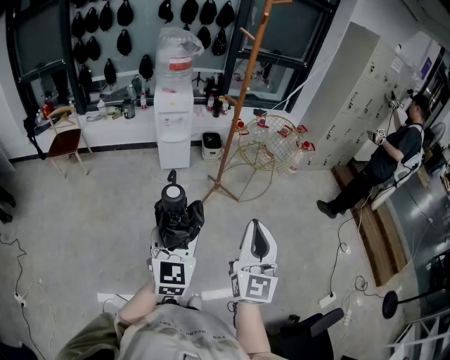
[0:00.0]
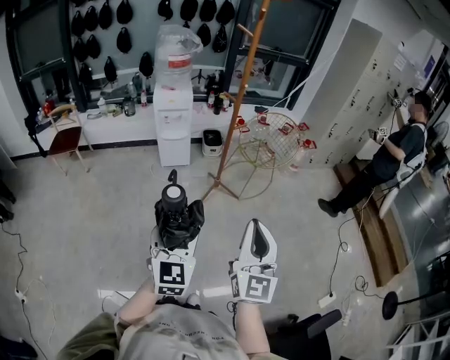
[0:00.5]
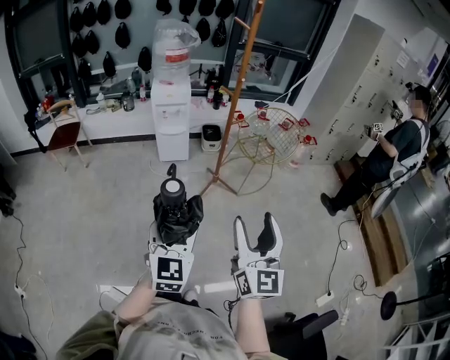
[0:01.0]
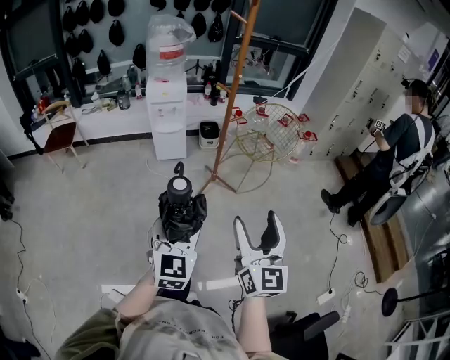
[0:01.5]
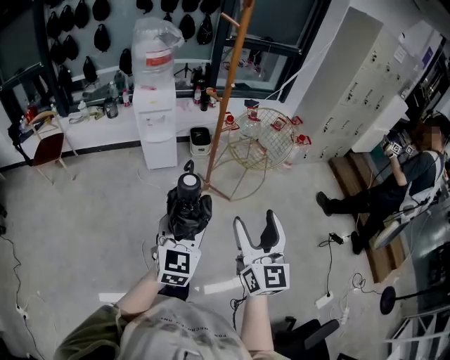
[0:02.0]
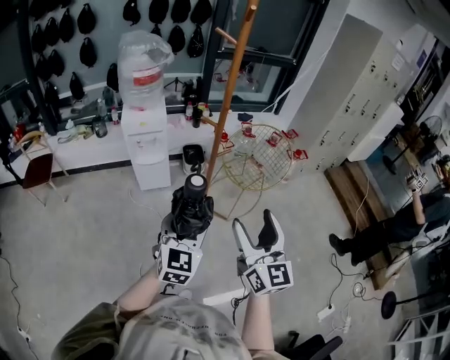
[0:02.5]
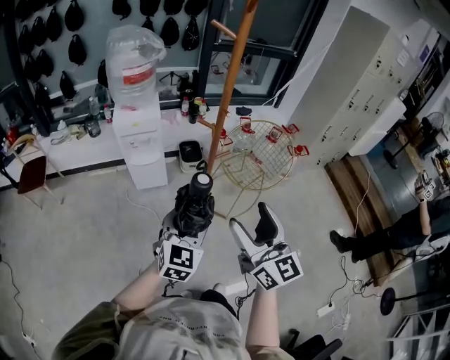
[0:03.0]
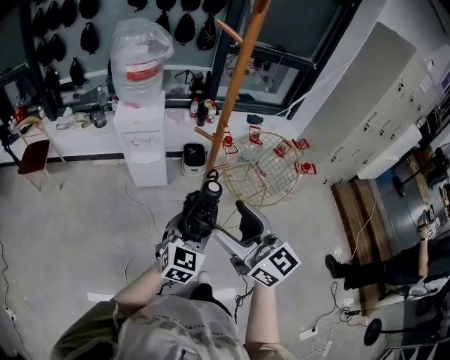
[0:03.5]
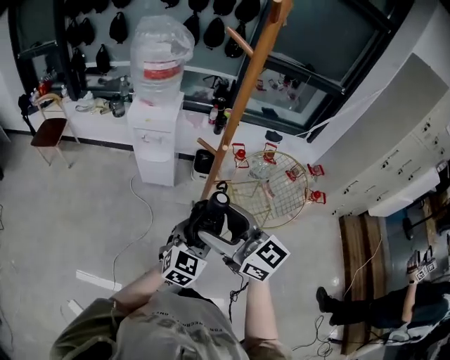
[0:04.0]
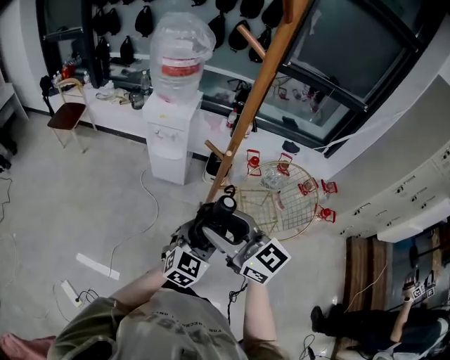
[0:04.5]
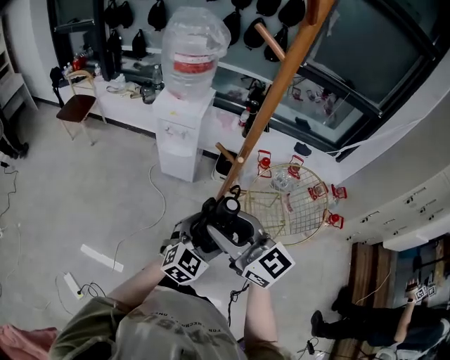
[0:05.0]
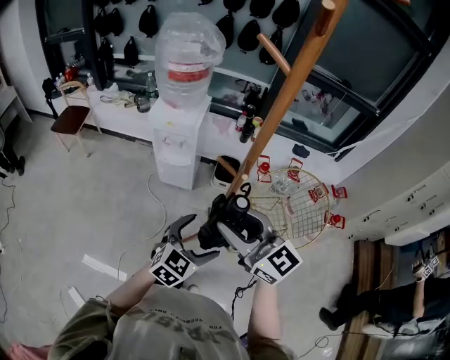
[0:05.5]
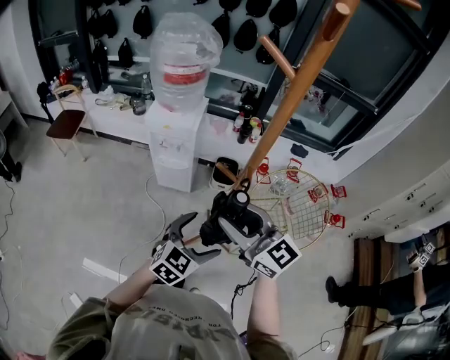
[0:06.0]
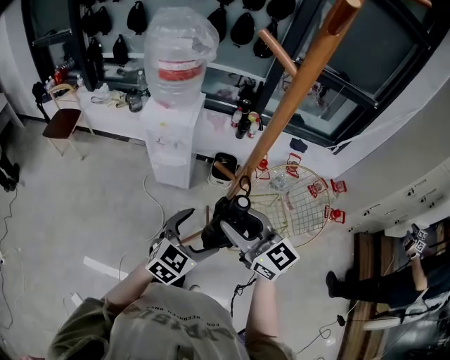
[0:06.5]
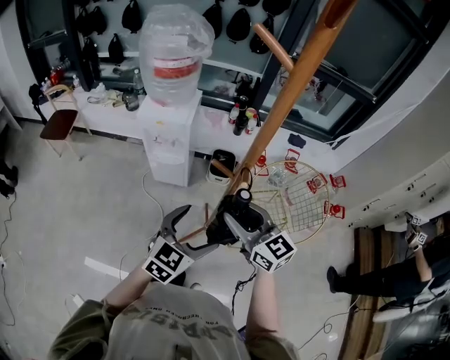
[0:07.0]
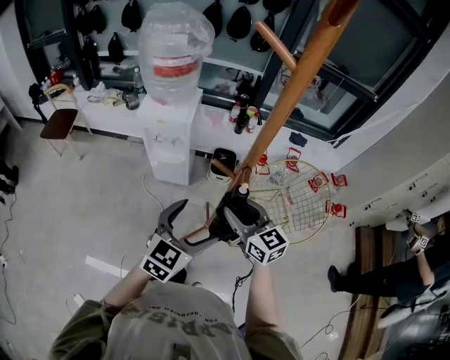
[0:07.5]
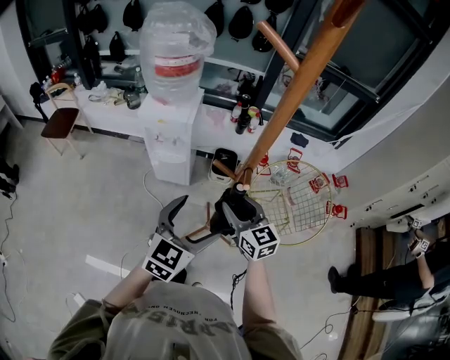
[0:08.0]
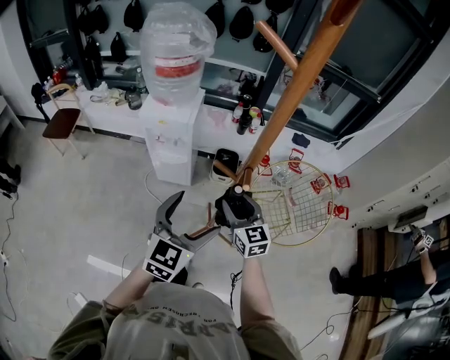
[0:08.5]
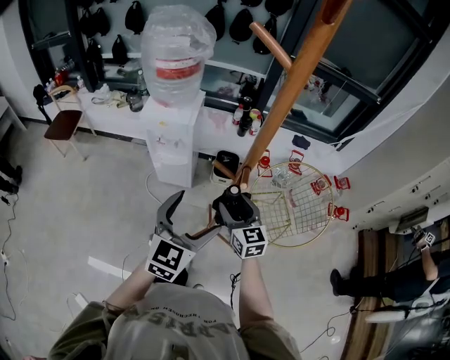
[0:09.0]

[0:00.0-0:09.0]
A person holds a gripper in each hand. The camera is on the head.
0.0 to 2.0 s: The left gripper heads forward and to the right, covering about 15 cm. The right gripper goes about 15 cm forward, and opens.
2.0 to 4.5 s: The left gripper ends up about 40 cm from where it was, while the right gripper changes place by about 35 cm, rotates about 60 degrees, and closes up.
4.5 to 7.0 s: The left gripper goes approximately 10 cm forward and to the left, and opens up. The right gripper moves forward and downward, roughly 15 cm.
7.0 to 9.0 s: The right gripper heads downward and forward, covering some 10 cm. Meanwhile the left gripper heads upward, covering some 5 cm.

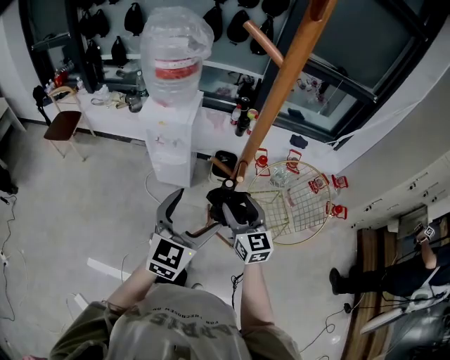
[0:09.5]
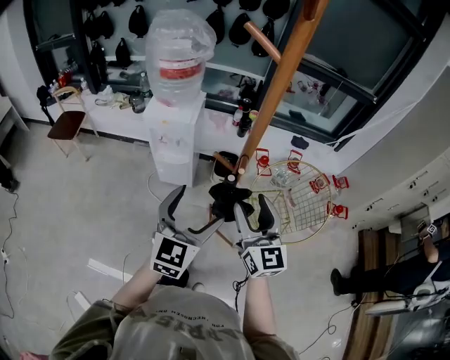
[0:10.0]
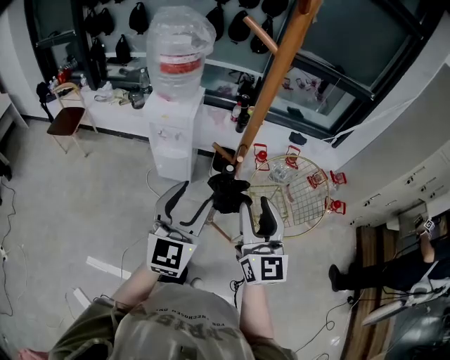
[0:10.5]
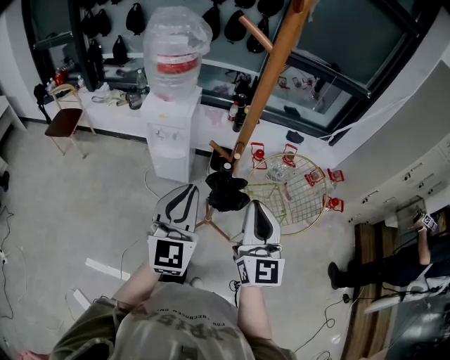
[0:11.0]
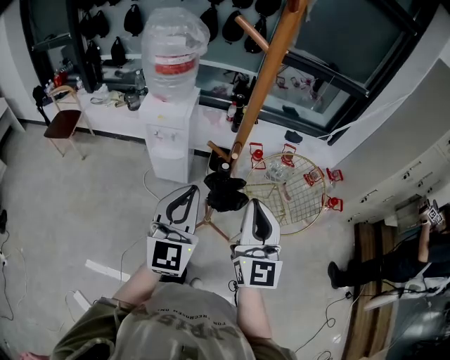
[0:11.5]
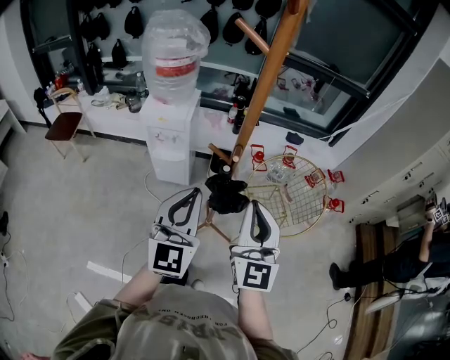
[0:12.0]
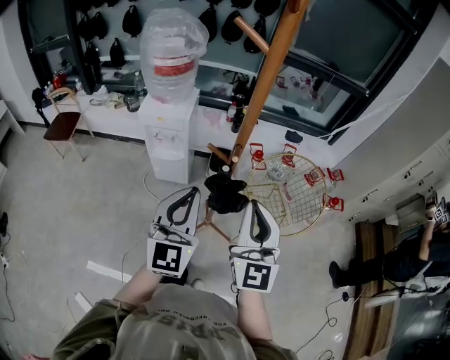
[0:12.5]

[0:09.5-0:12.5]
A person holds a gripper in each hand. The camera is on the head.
9.5 to 11.0 s: The right gripper heads upward and backward, covering roughly 20 cm, changes its angle by approximately 20 degrees, and closes up. The left gripper moves upward, some 5 cm, turns by about 20 degrees, and closes its fingers.
11.0 to 12.5 s: The grippers make only small movements.

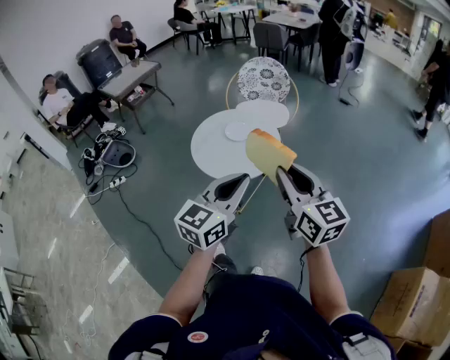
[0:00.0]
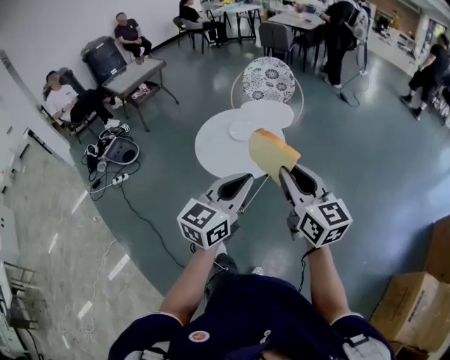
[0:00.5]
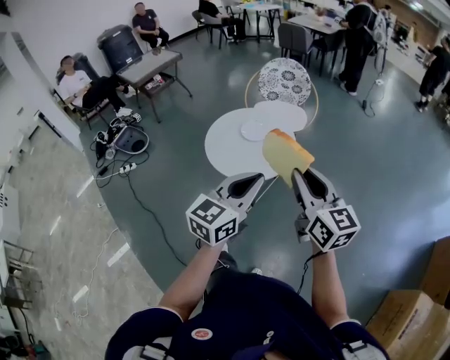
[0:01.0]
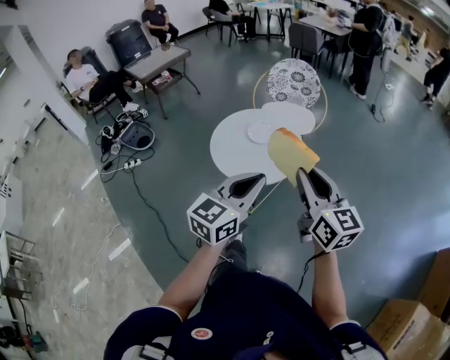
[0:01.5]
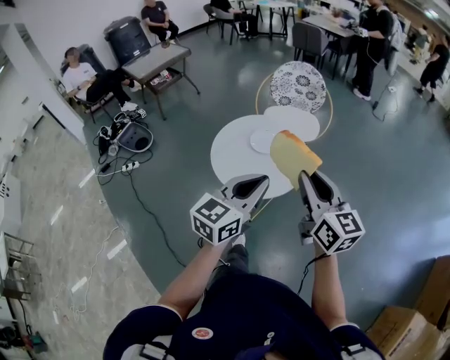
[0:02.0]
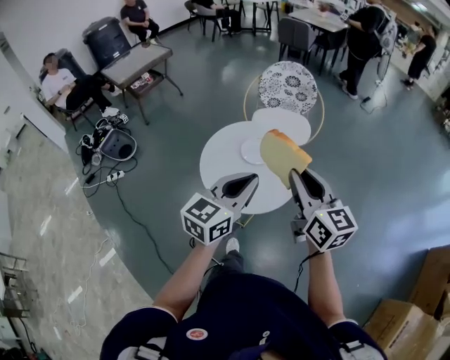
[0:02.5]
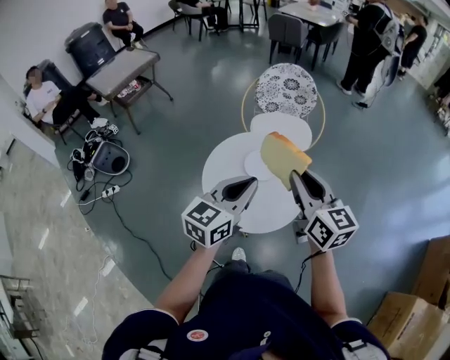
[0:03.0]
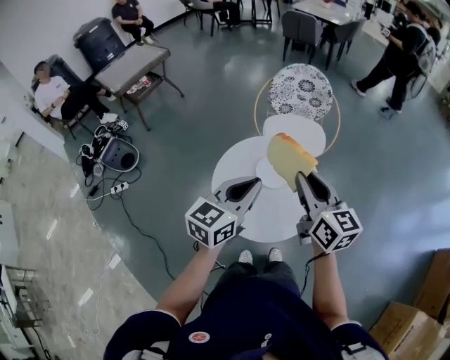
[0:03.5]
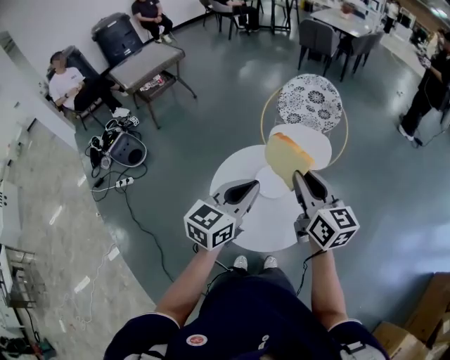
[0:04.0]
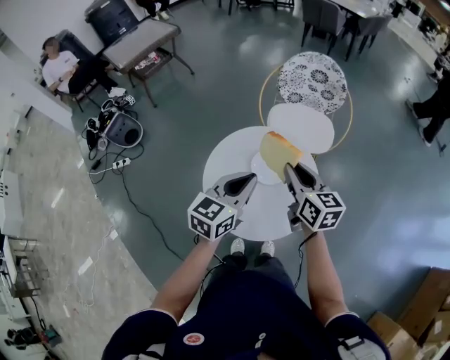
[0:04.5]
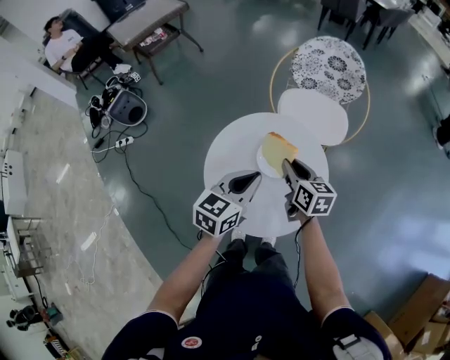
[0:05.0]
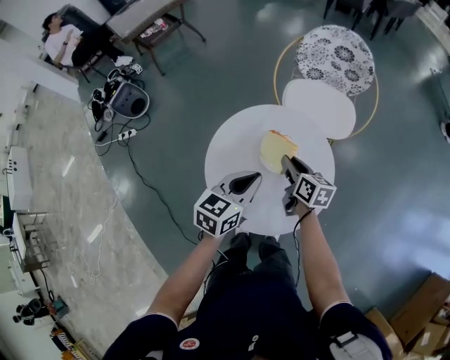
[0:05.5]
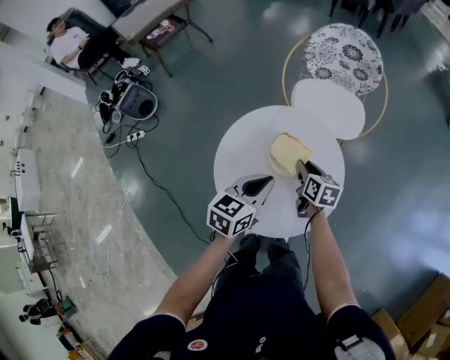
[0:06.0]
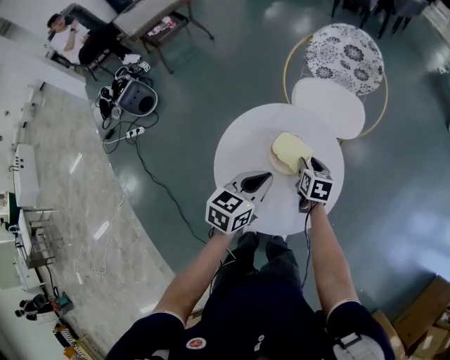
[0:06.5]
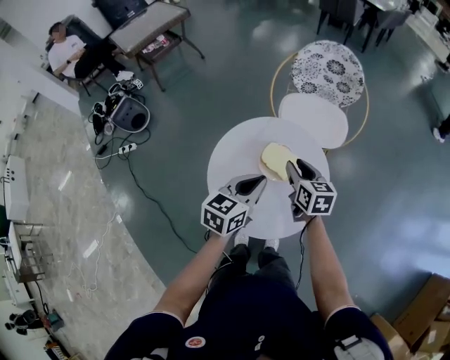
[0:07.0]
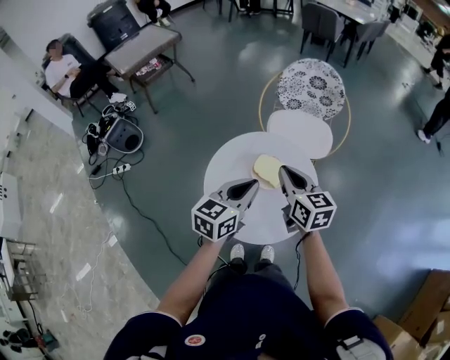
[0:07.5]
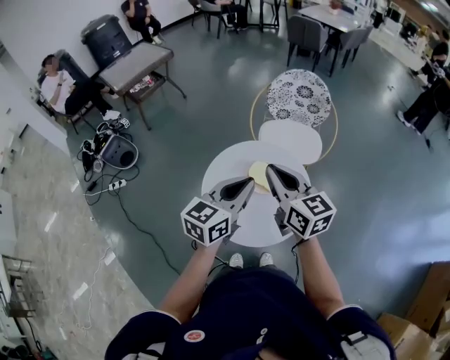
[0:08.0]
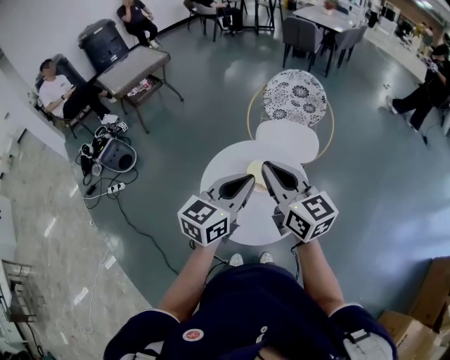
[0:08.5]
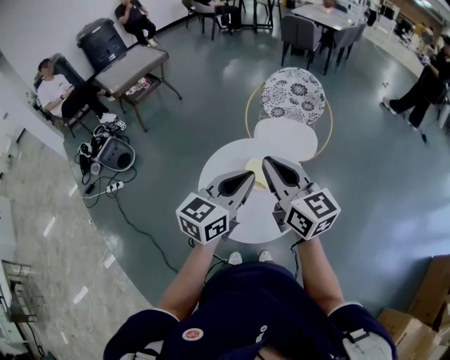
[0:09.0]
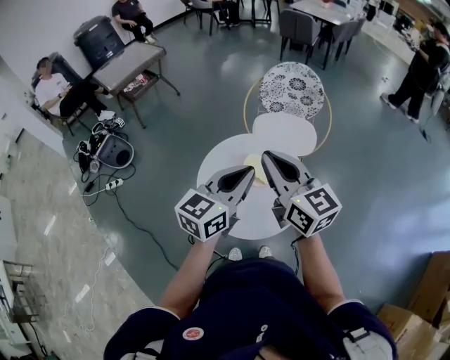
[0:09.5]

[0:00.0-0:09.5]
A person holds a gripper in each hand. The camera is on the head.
0.0 to 2.0 s: Both grippers move forward, roughly 10 cm.
2.0 to 4.0 s: The right gripper travels forward by some 25 cm, while the left gripper shifts roughly 25 cm forward and to the left.
4.0 to 5.5 s: The left gripper travels downward by roughly 15 cm. The right gripper is displaced downward by approximately 30 cm, and swivels roughly 30 degrees.
5.5 to 7.5 s: The right gripper shifts some 20 cm upward, and turns by roughly 30 degrees. Meanwhile the left gripper travels upward by about 10 cm.
7.5 to 9.5 s: Both grippers move upward, some 15 cm. The right gripper rotates some 20 degrees.

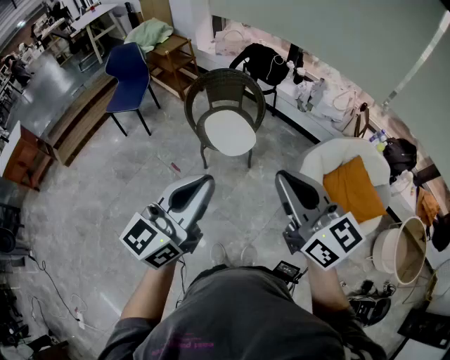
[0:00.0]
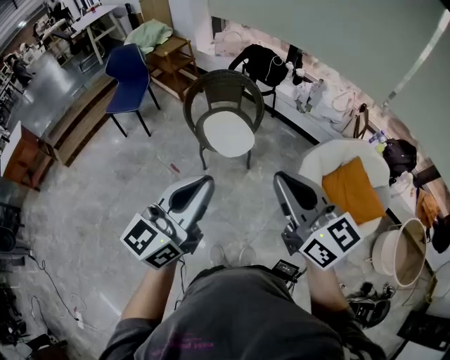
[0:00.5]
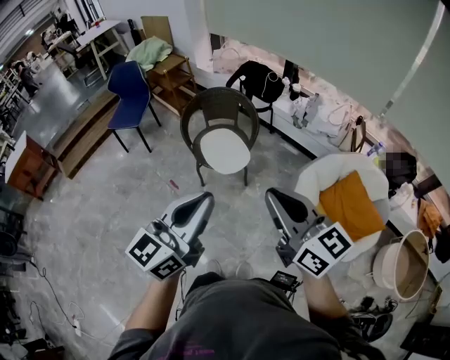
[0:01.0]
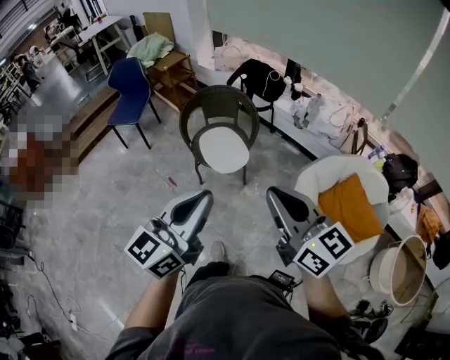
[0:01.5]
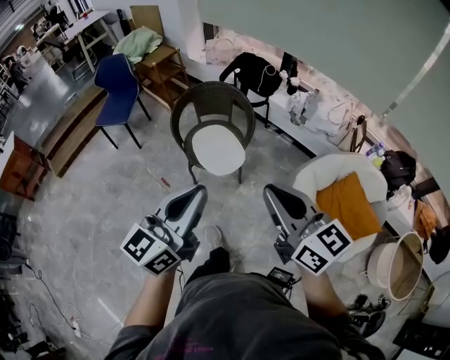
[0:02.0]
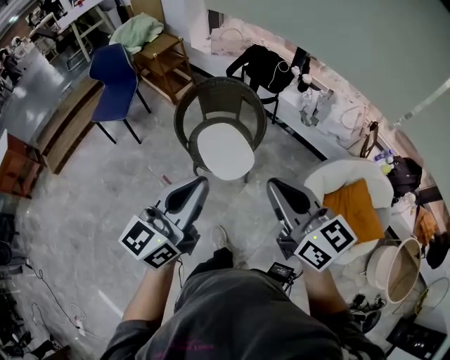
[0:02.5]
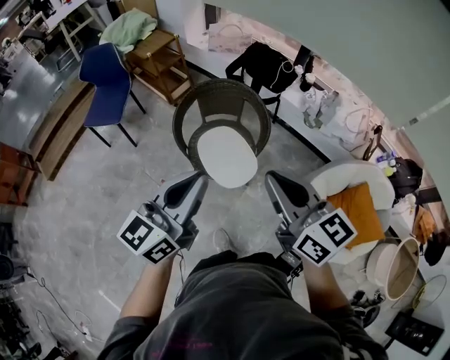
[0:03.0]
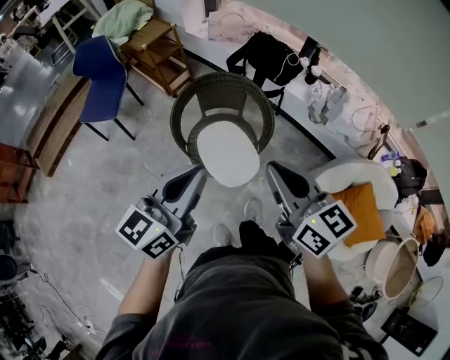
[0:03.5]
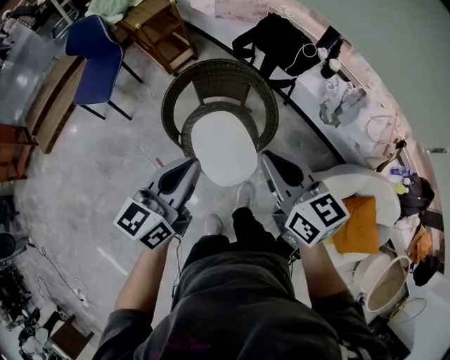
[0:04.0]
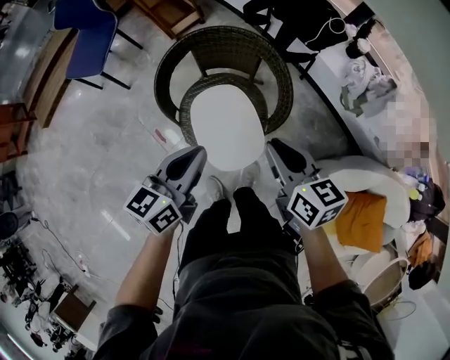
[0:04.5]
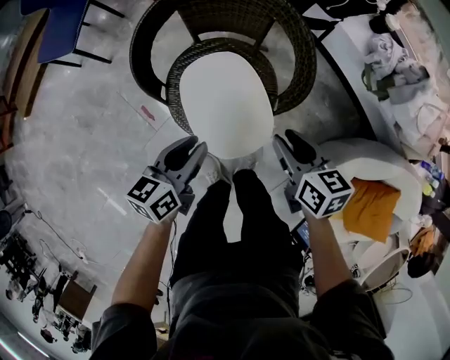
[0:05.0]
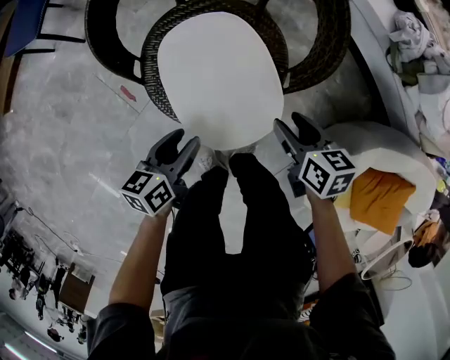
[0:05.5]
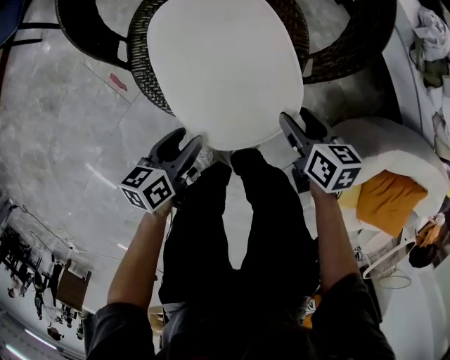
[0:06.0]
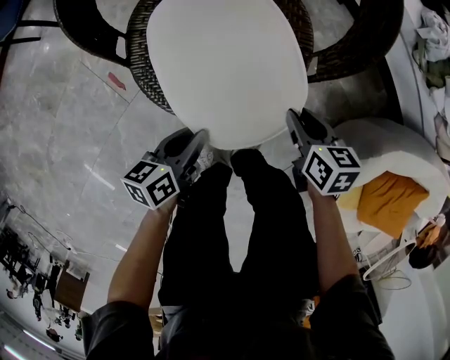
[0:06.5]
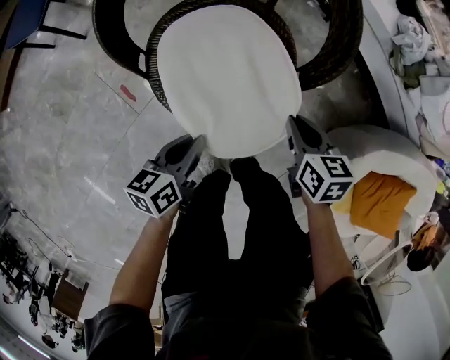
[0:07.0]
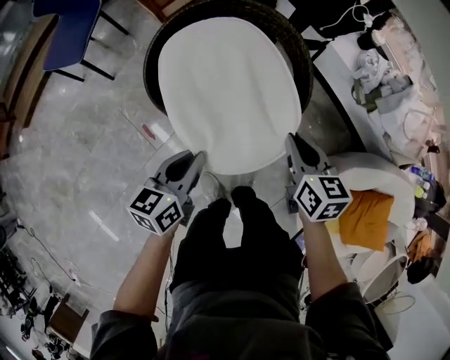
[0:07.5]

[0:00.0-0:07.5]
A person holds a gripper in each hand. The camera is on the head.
0.0 to 2.0 s: Both grippers move forward, some 10 cm.
2.0 to 4.0 s: The grippers both shift forward by about 40 cm.
4.0 to 5.5 s: Both grippers move downward, about 50 cm. The left gripper rotates roughly 40 degrees, and opens up, while the right gripper changes its angle by approximately 30 degrees, and opens up.
5.5 to 7.5 s: Both grippers move upward, some 20 cm. The left gripper closes its fingers. The right gripper swivels about 20 degrees, and closes its fingers.
